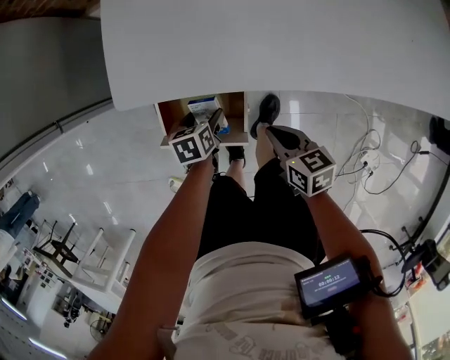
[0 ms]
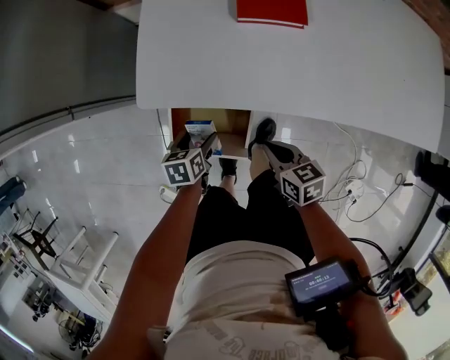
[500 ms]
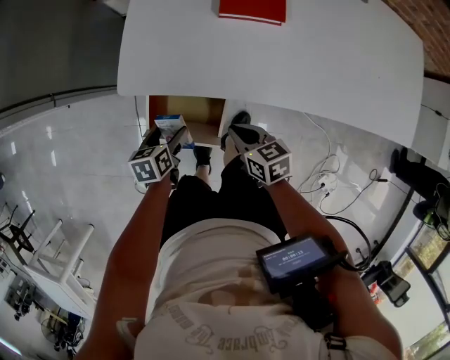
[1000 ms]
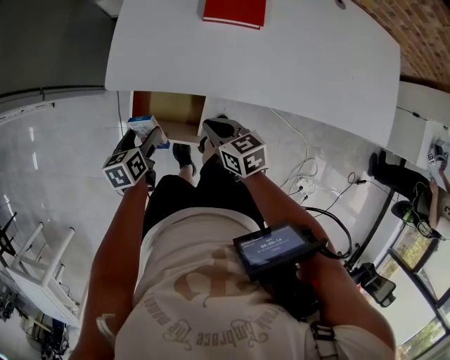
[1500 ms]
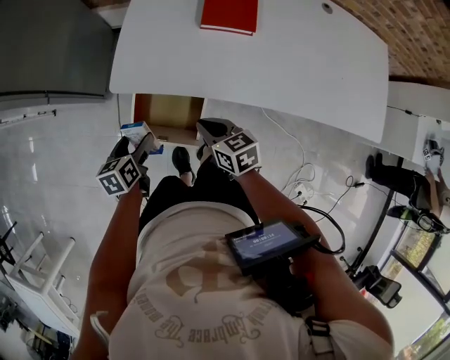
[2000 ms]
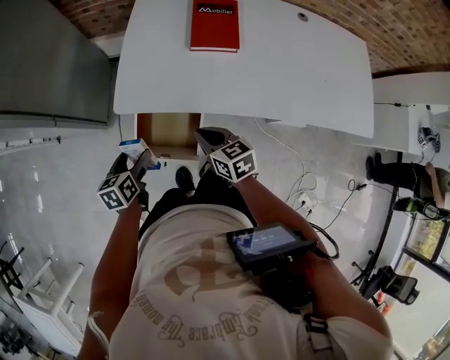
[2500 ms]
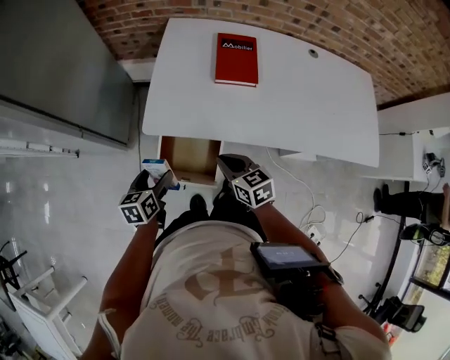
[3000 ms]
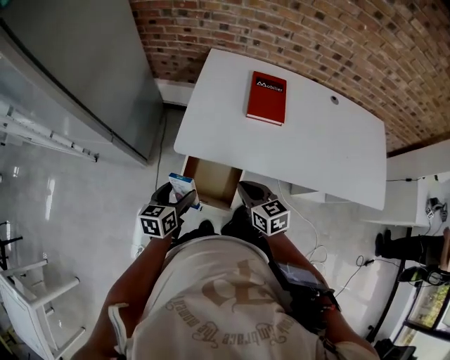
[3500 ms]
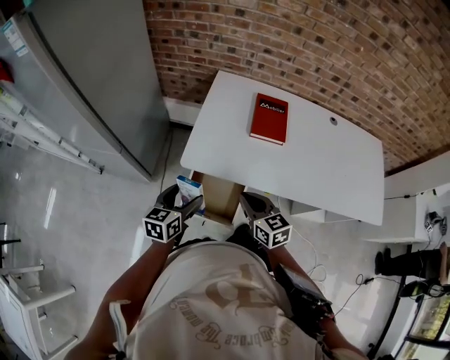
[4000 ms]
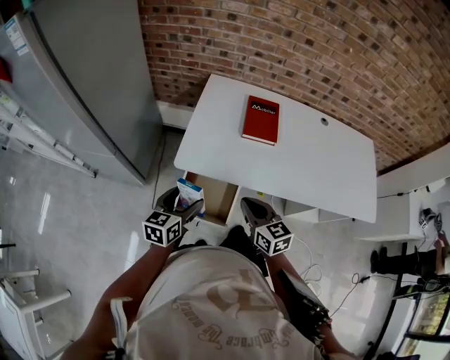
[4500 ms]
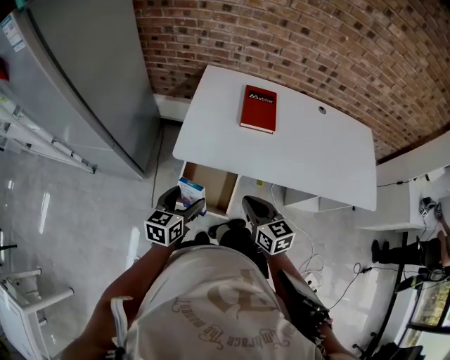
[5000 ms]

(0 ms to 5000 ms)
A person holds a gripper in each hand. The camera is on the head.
0 ms - 2500 ms: The left gripper goes some 20 cm upward and to the left, and swivels approximately 20 degrees. Meanwhile the right gripper travels upward and forward by approximately 15 cm.
2500 ms - 5000 ms: The right gripper moves upward and backward, approximately 15 cm. The left gripper shifts about 10 cm upward, and rotates about 30 degrees.

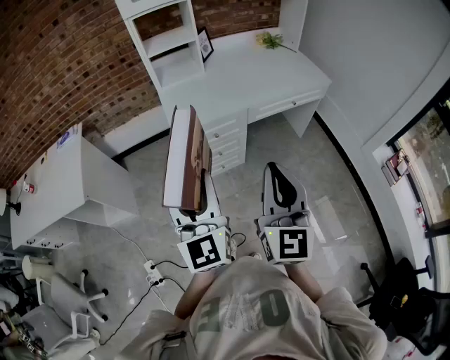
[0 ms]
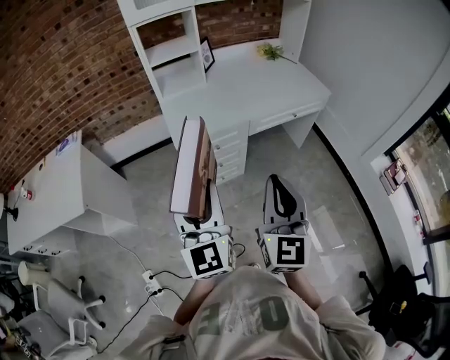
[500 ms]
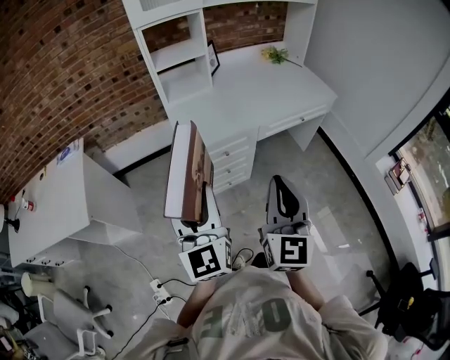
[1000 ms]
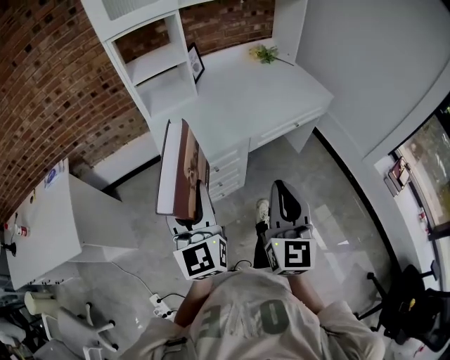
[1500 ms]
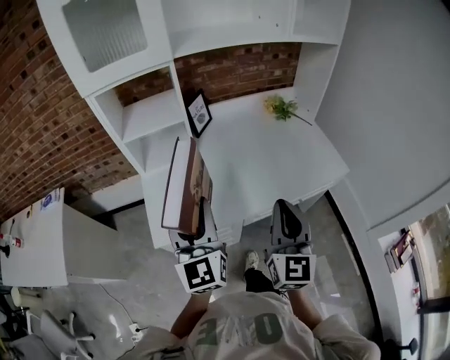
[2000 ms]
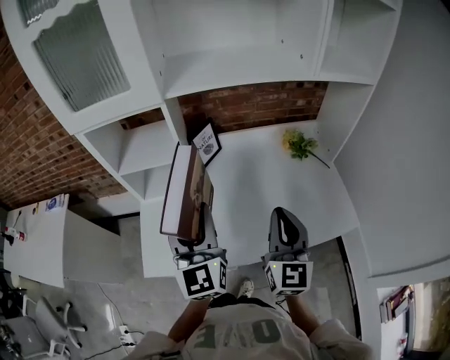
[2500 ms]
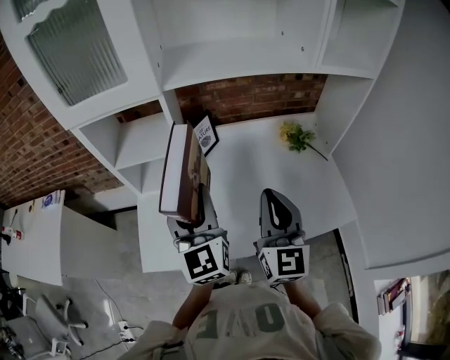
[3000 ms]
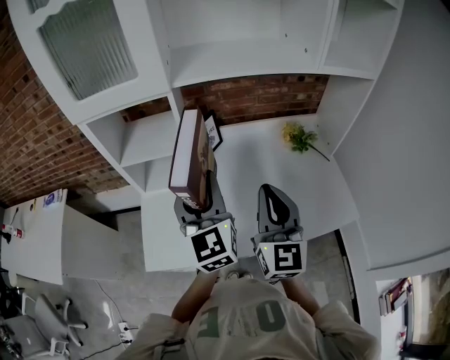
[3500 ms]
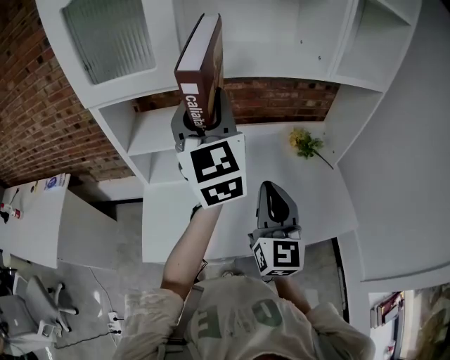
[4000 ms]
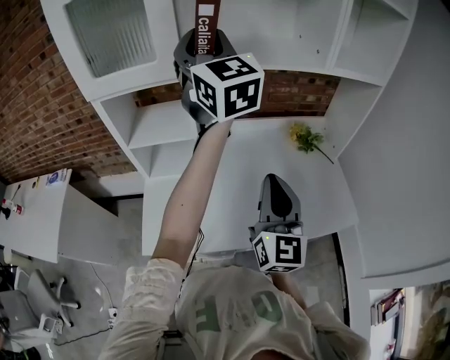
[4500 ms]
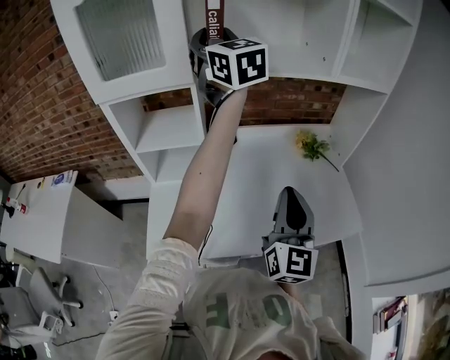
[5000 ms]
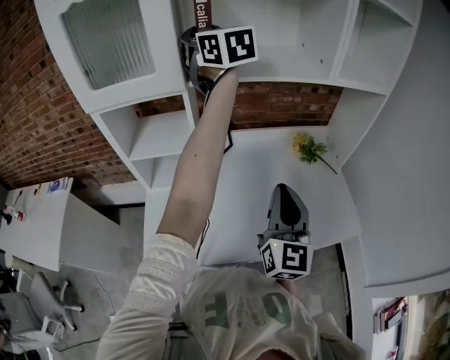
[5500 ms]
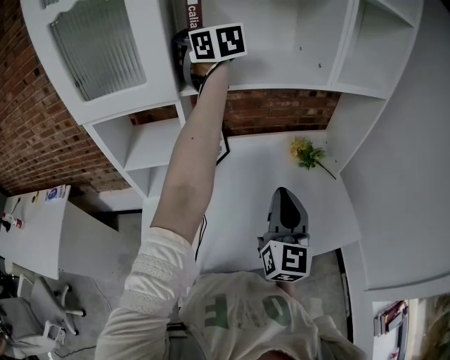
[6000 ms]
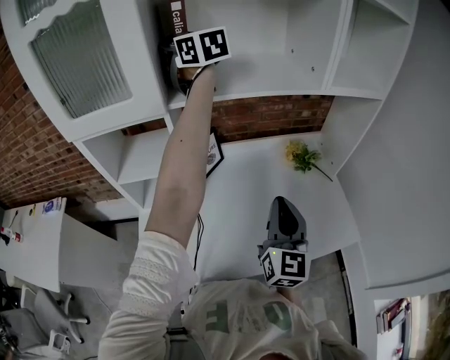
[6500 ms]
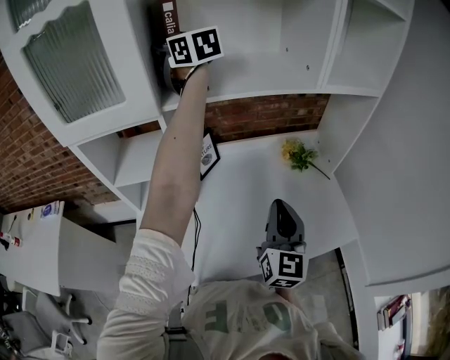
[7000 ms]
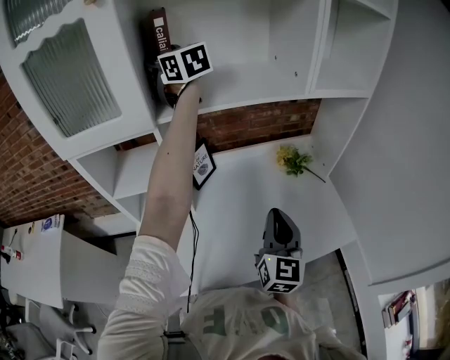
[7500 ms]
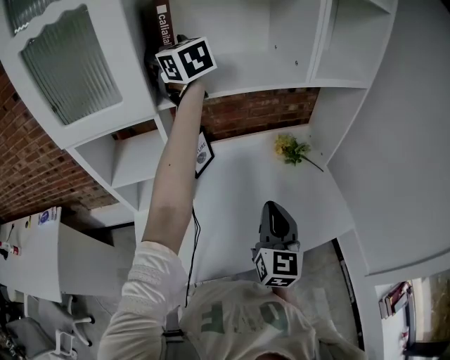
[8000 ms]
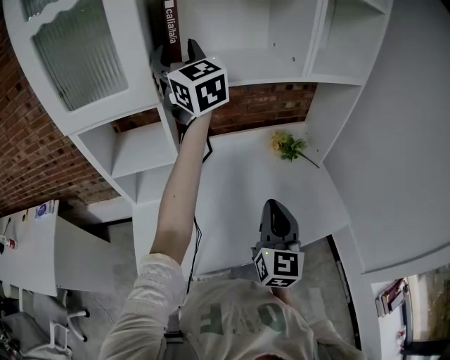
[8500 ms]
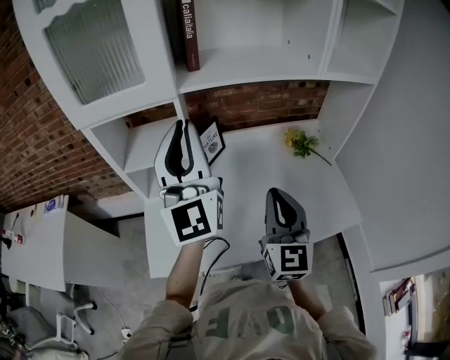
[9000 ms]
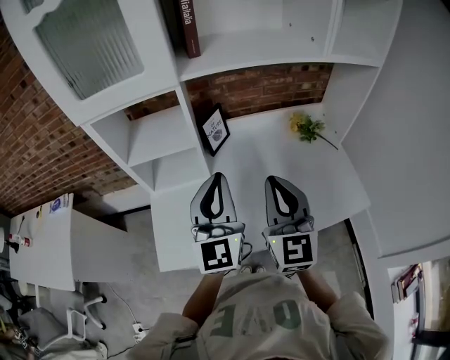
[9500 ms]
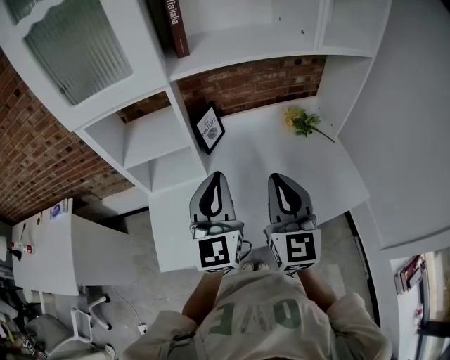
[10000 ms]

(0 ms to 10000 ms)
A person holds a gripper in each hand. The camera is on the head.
0 ms - 2000 ms: The two grippers travel together, forward, approximately 40 cm.
2000 ms - 4000 ms: The right gripper heads forward, covering approximately 20 cm, while the left gripper travels forward and upward by approximately 35 cm.
4000 ms - 6000 ms: The left gripper heads forward, covering roughly 25 cm, and swivels approximately 20 degrees; the right gripper heads to the right, covering roughly 5 cm.
6000 ms - 8000 ms: There are only small adjustments of the grippers.
8000 ms - 10000 ms: The right gripper travels to the left by approximately 5 cm, while the left gripper travels backward and downward by some 40 cm, turns by approximately 30 degrees, and closes up.

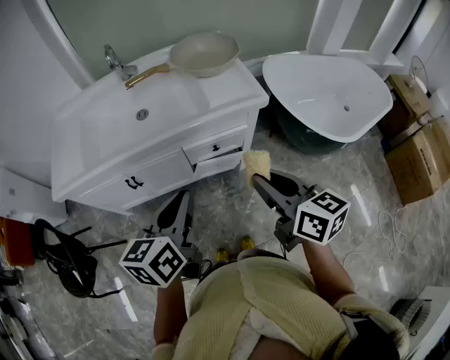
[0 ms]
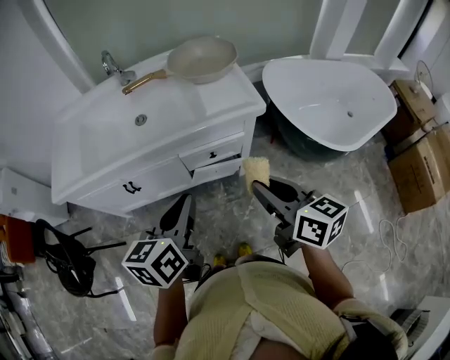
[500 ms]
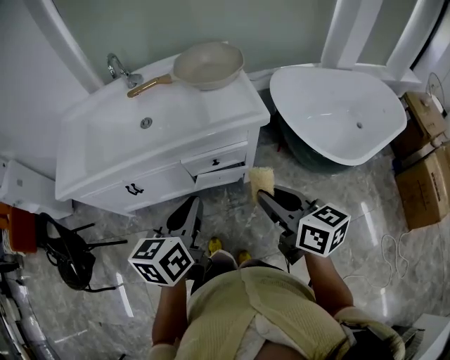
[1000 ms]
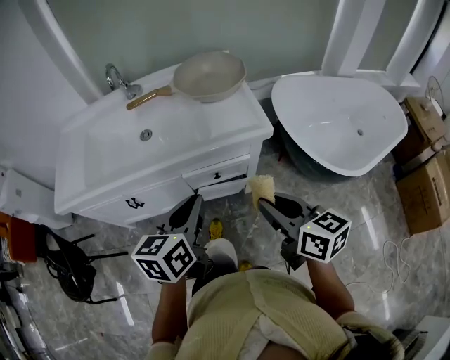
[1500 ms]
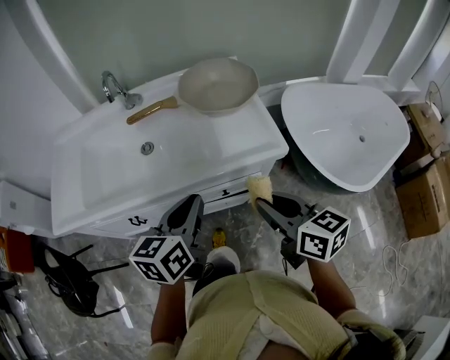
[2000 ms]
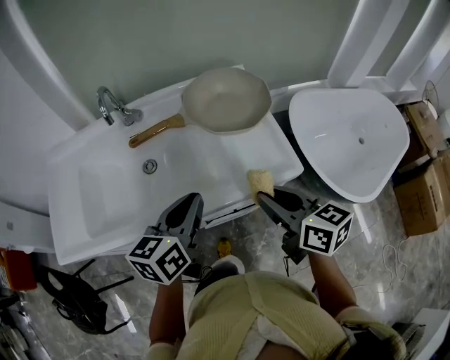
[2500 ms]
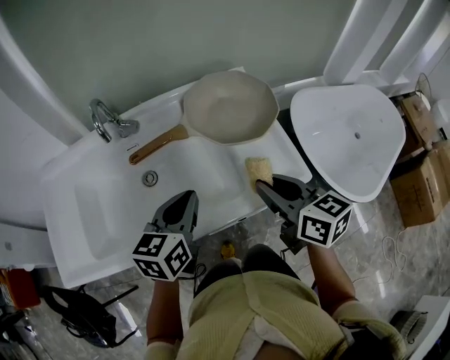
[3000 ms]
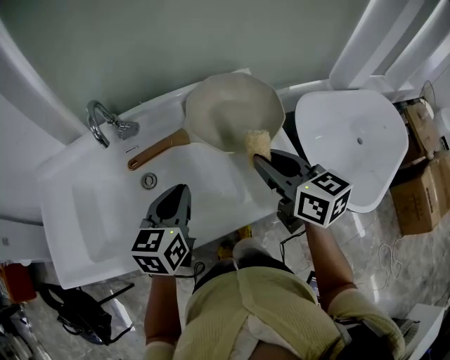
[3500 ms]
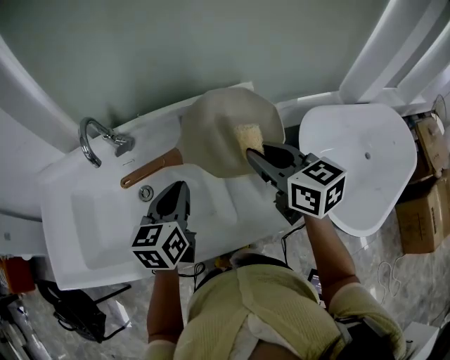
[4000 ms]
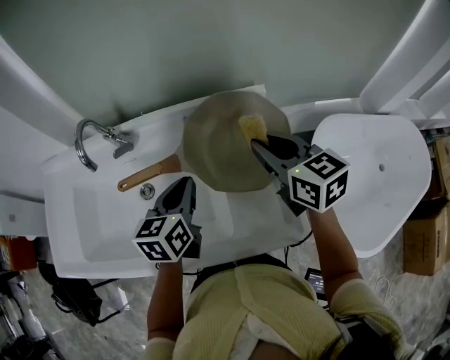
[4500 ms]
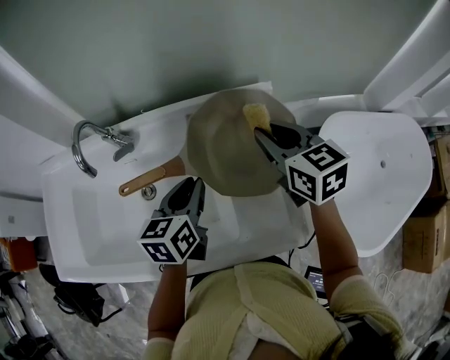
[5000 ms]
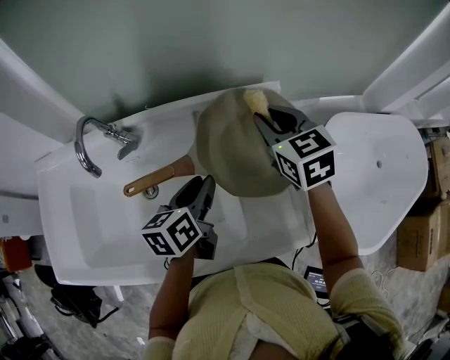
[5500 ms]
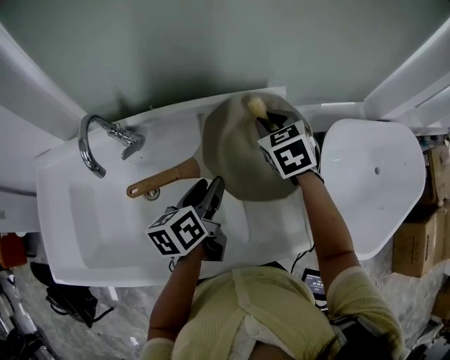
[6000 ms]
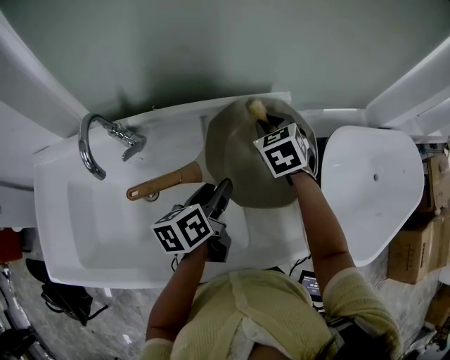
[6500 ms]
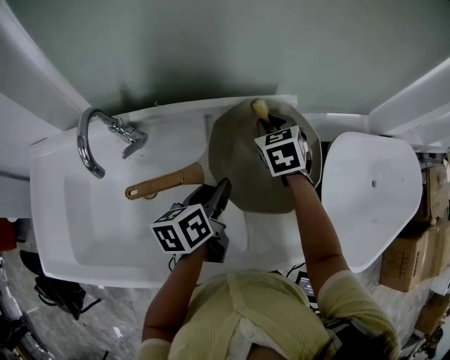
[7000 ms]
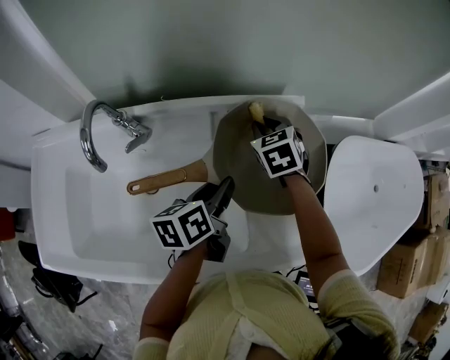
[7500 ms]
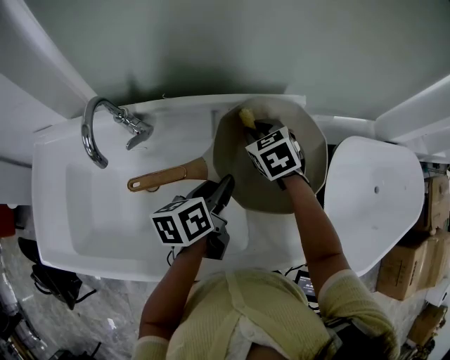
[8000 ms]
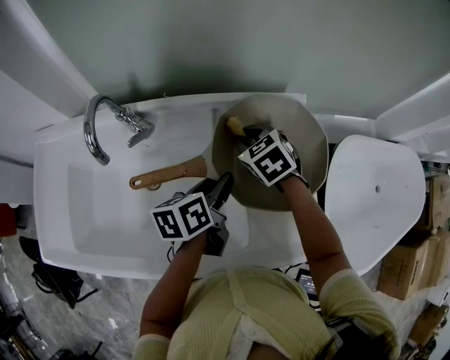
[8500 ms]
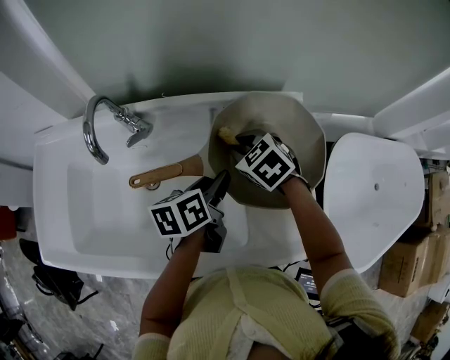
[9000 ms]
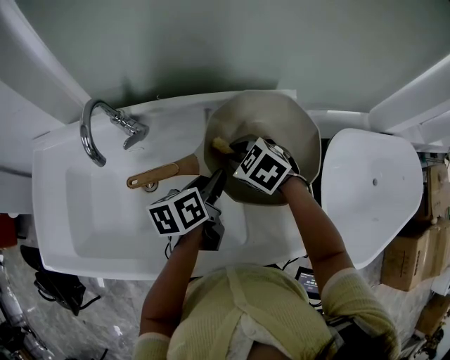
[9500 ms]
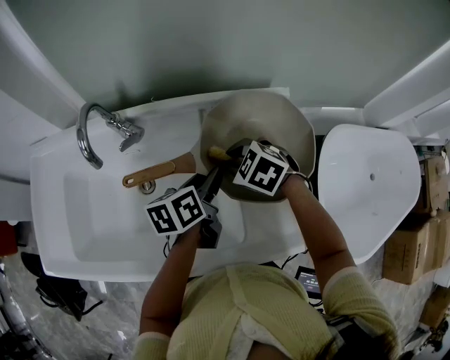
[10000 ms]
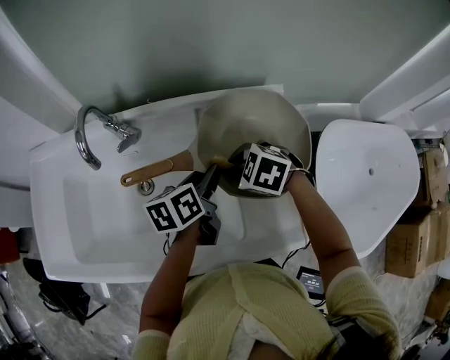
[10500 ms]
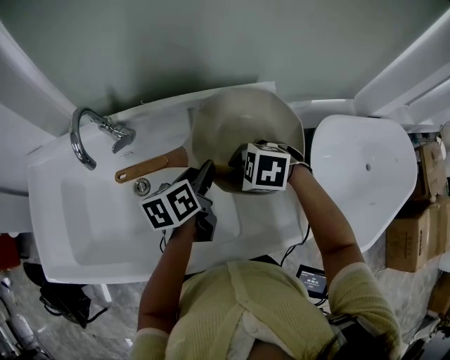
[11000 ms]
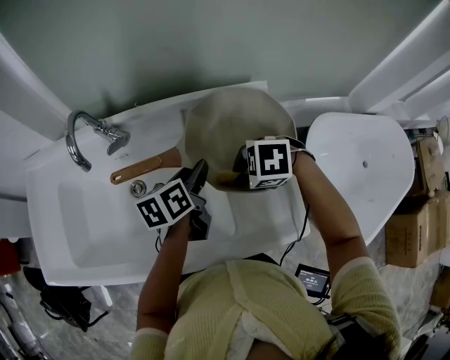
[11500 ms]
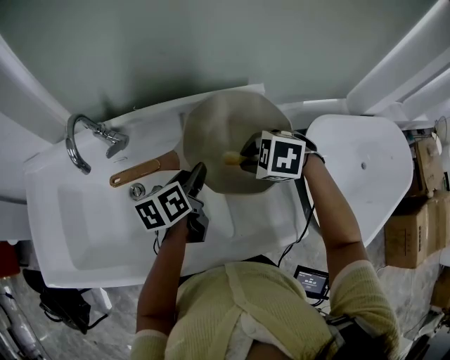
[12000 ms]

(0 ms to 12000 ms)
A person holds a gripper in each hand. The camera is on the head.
0 ms - 2000 ms: The grippers both shift forward by roughly 15 cm.
2000 ms - 4000 ms: Both grippers travel together forward, some 30 cm.
4000 ms - 6000 ms: The right gripper moves forward and downward, approximately 20 cm, and swivels roughly 40 degrees. The left gripper is displaced forward and downward by about 10 cm, rotates approximately 30 degrees, and opens up.
6000 ms - 8000 ms: The right gripper heads downward and to the left, covering about 10 cm.
8000 ms - 10000 ms: The right gripper travels backward and to the left by some 10 cm, and swivels roughly 30 degrees.
10000 ms - 12000 ms: The right gripper shifts by approximately 10 cm.
